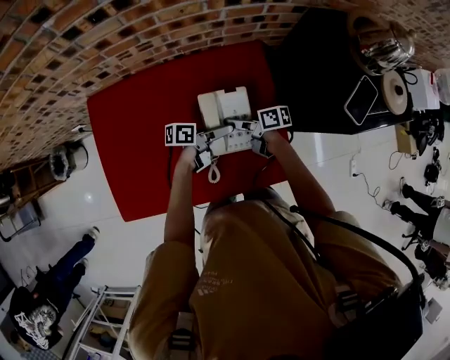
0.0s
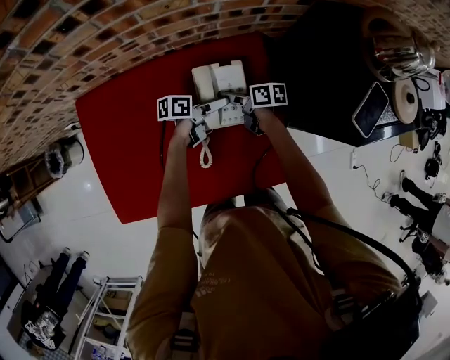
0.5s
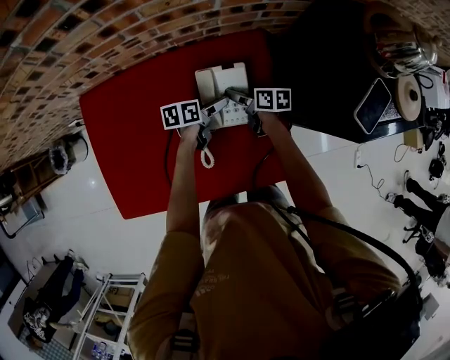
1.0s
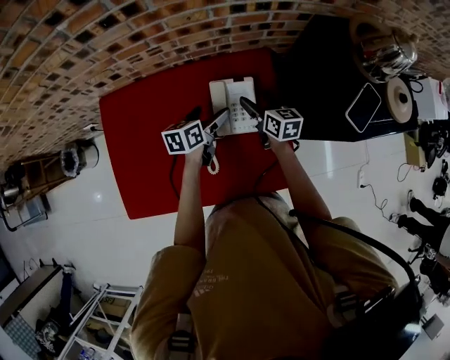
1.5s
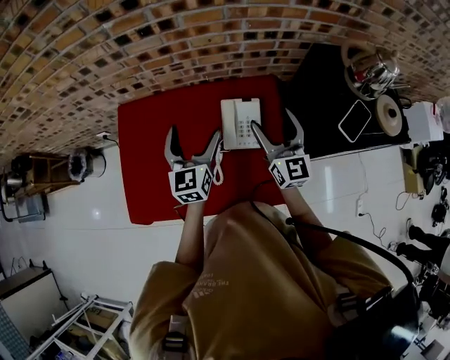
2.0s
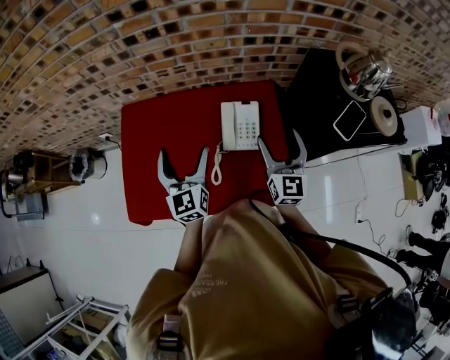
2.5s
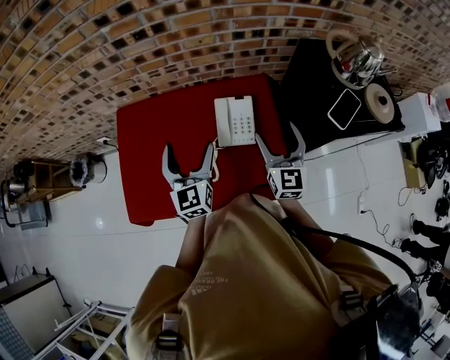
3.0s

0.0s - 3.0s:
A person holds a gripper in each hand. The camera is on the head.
0.0s - 1.5s: The left gripper ends up approximately 15 cm from where it was, and swivels some 40 degrees.
1.5s - 3.0s: The left gripper shifts some 25 cm upward, and changes its angle by roughly 60 degrees.

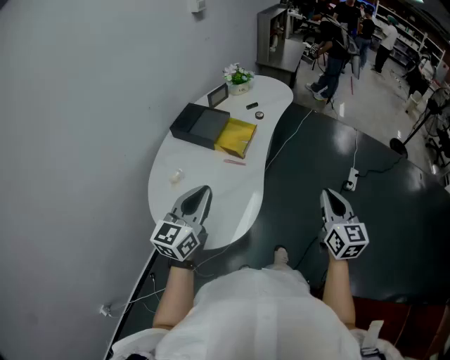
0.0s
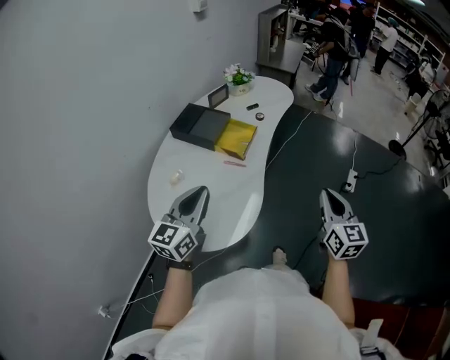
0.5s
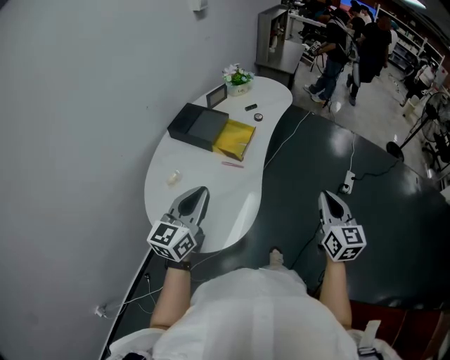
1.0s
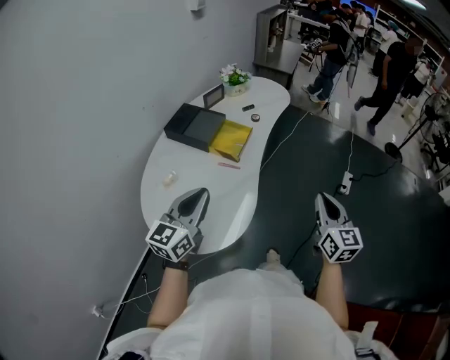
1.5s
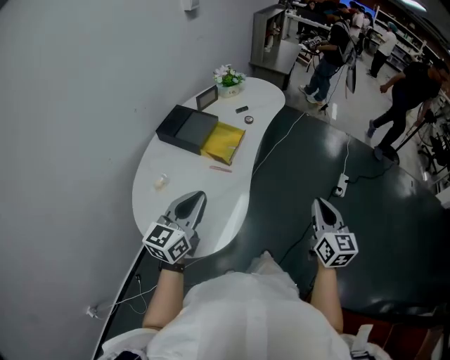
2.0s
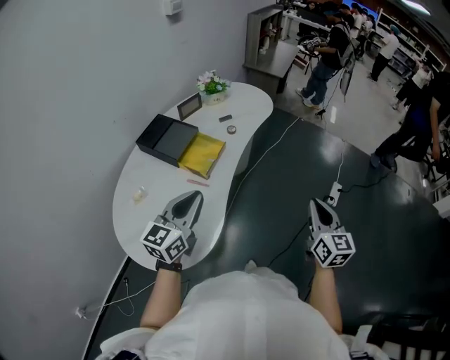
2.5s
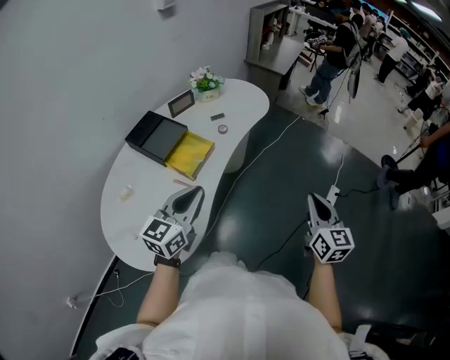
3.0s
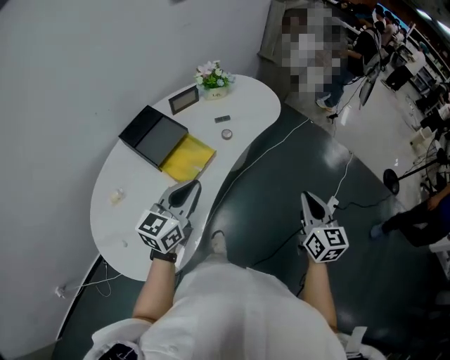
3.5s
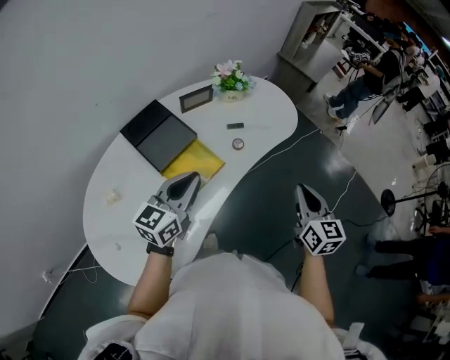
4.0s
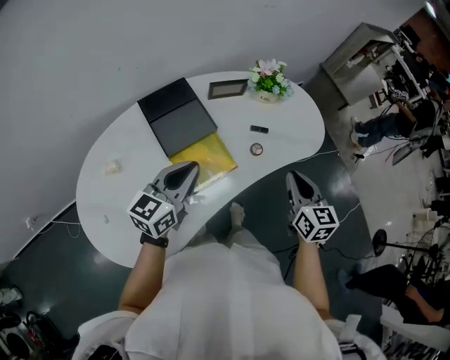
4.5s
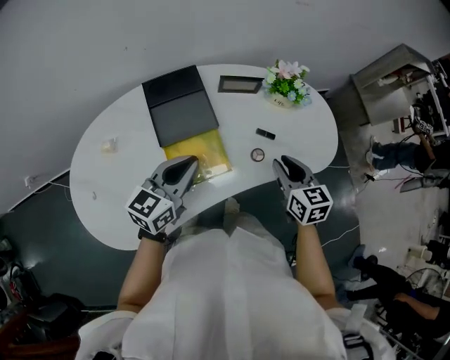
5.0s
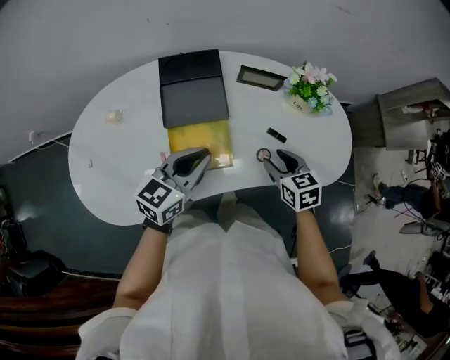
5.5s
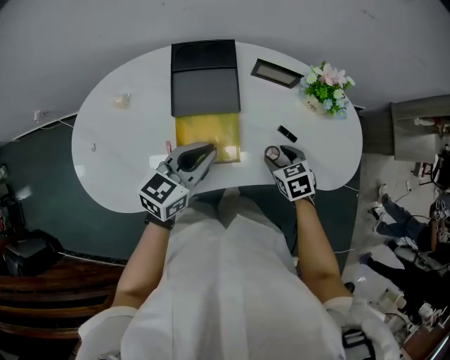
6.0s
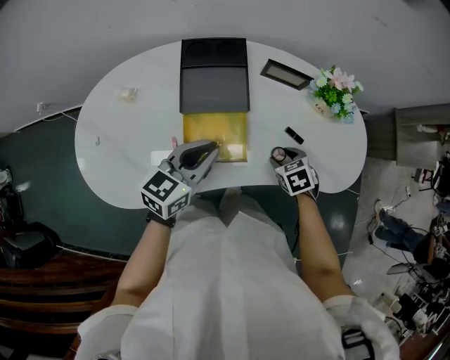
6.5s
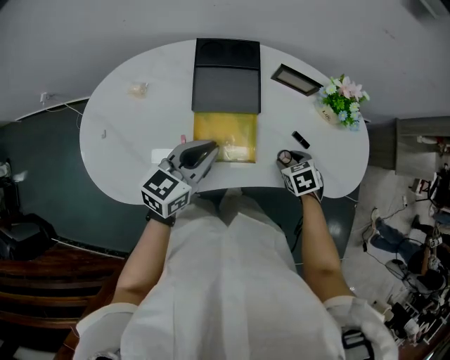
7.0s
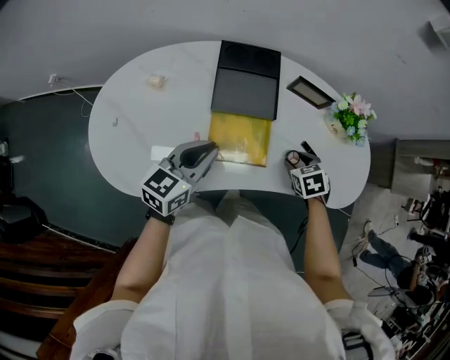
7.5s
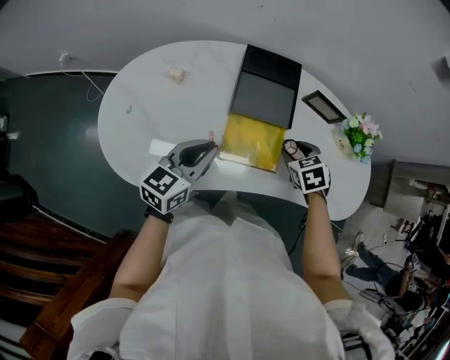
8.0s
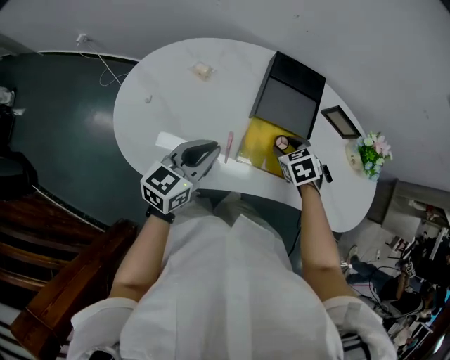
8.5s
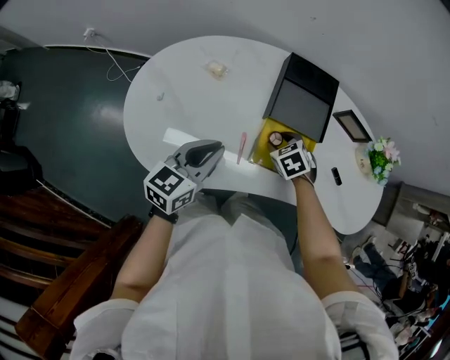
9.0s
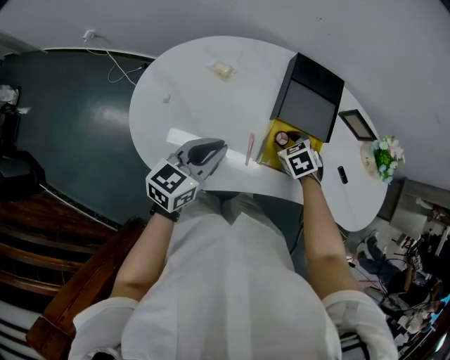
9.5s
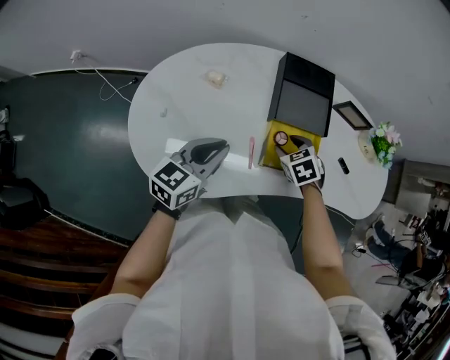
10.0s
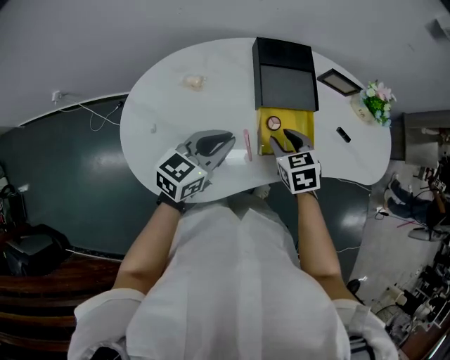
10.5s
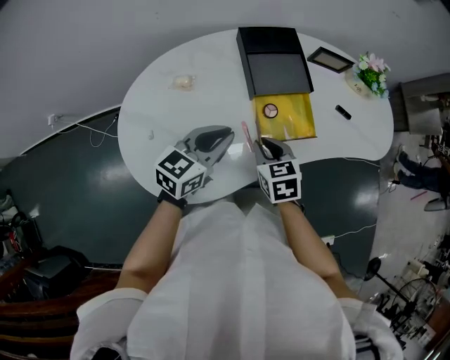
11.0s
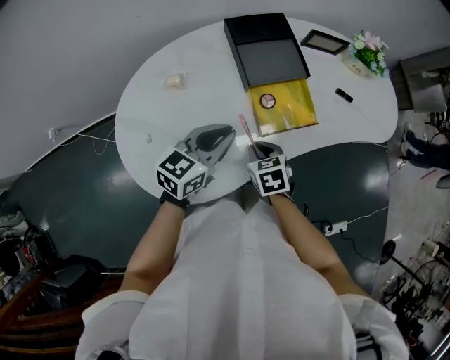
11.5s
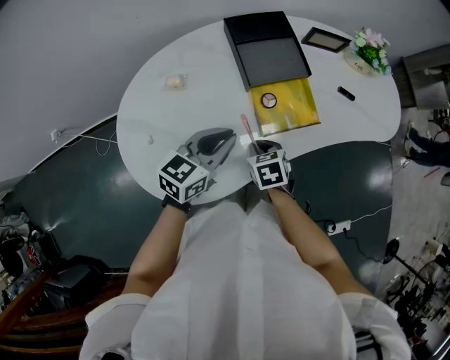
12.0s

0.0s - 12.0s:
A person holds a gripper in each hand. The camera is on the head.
0.0s - 2.0s: The left gripper ends up about 5 cm from where it was.
2.0s - 4.0s: Both grippers travel together forward, approximately 35 cm. The right gripper rotates approximately 20 degrees.
4.0s - 6.0s: The right gripper changes place by roughly 35 cm, tilts its fingers approximately 40 degrees downward, and opens its fingers, while the left gripper shifts roughly 10 cm downward, and swivels some 30 degrees.
6.0s - 8.0s: The left gripper moves to the left, roughly 15 cm. The right gripper goes approximately 10 cm to the left and upward.
8.0s - 10.0s: The grippers both shift to the left by approximately 15 cm.
10.0s - 12.0s: The right gripper moves backward, about 10 cm, turns by some 40 degrees, and closes up. Meanwhile the left gripper moves about 5 cm, and rotates some 30 degrees.

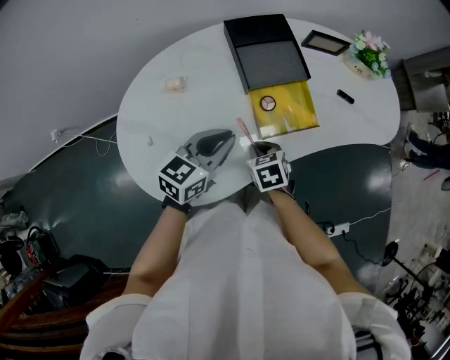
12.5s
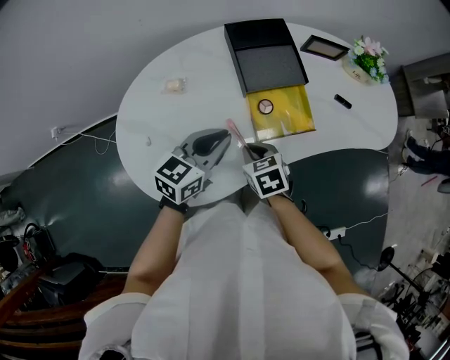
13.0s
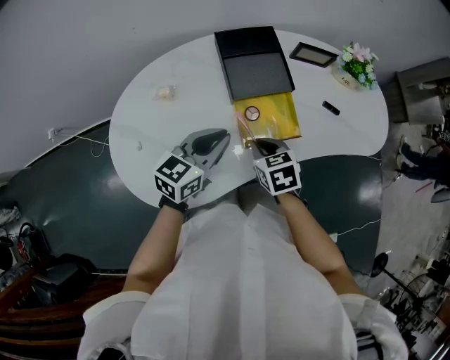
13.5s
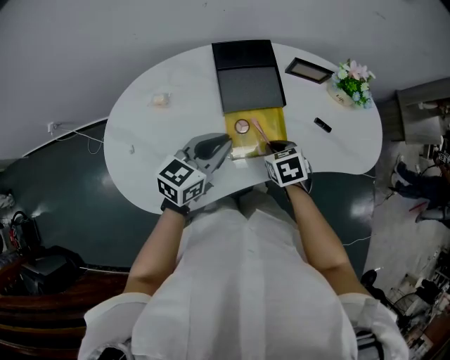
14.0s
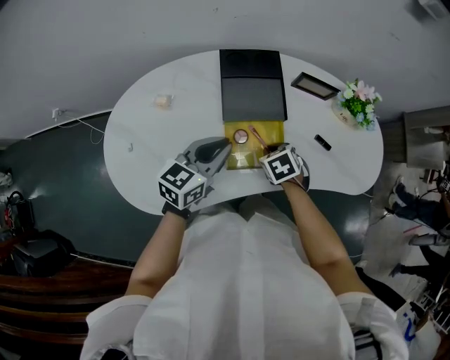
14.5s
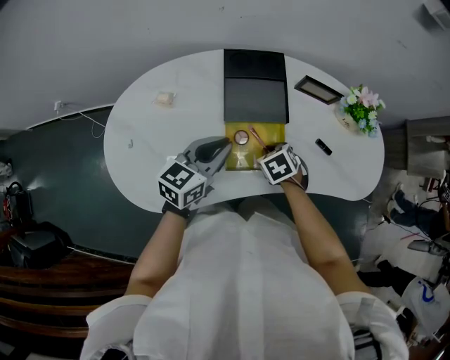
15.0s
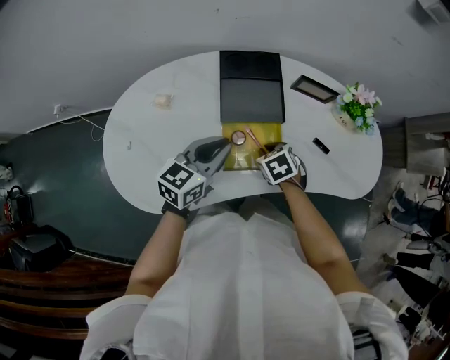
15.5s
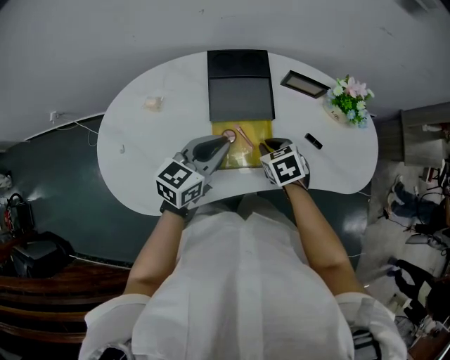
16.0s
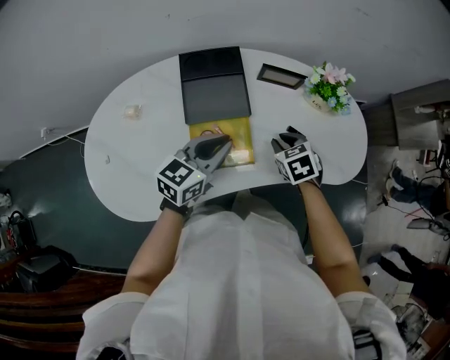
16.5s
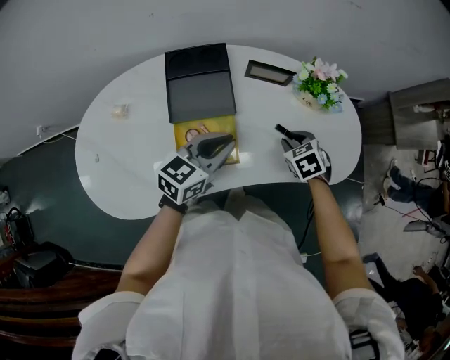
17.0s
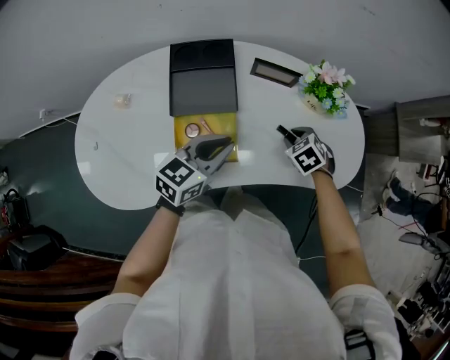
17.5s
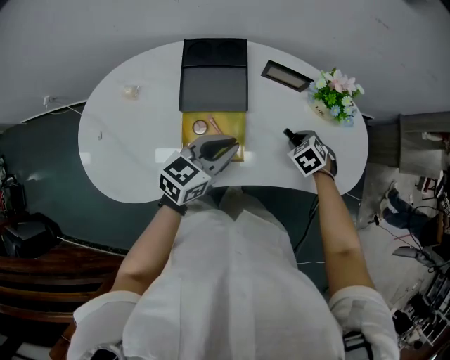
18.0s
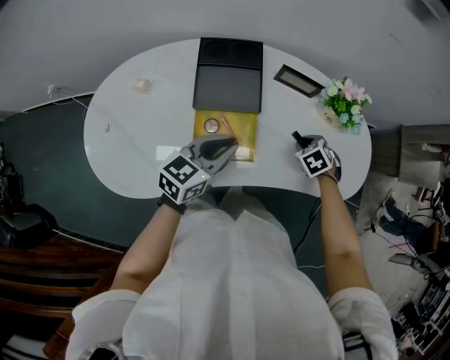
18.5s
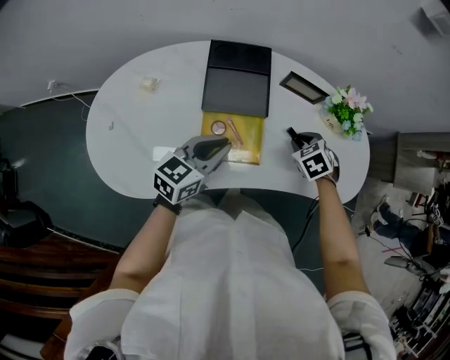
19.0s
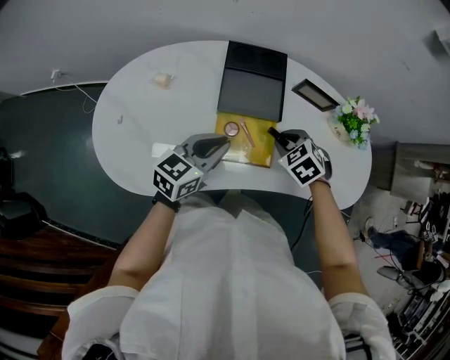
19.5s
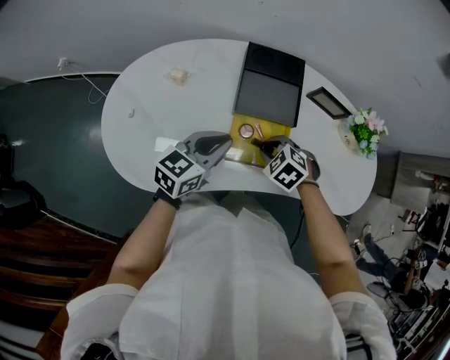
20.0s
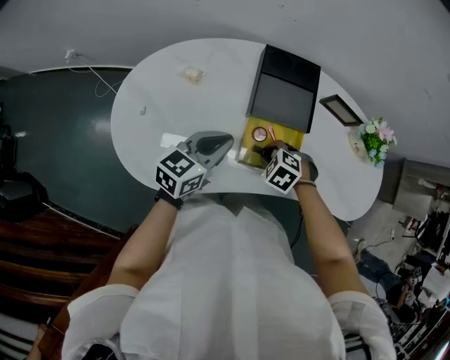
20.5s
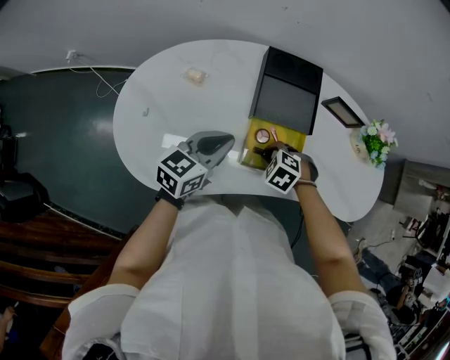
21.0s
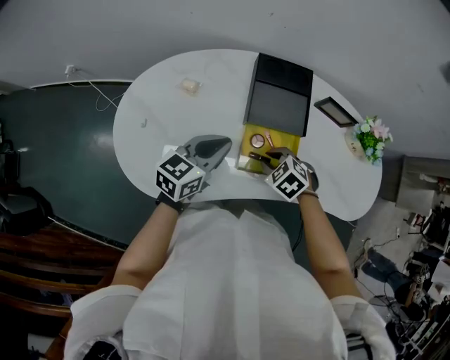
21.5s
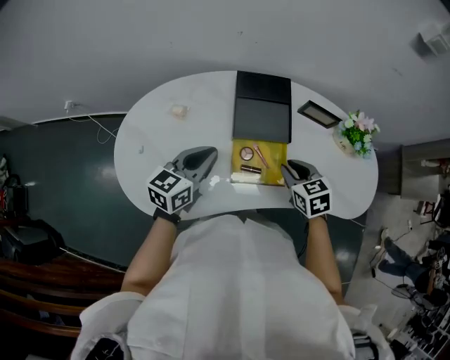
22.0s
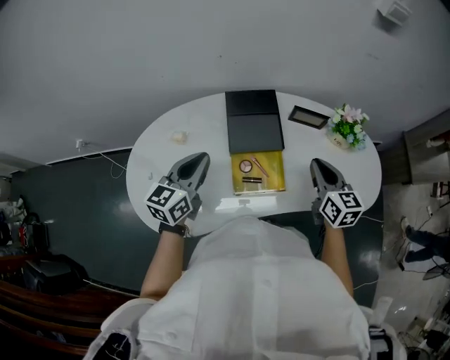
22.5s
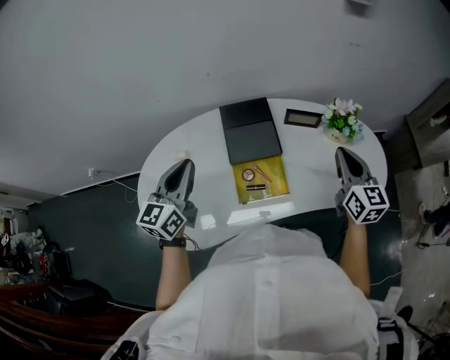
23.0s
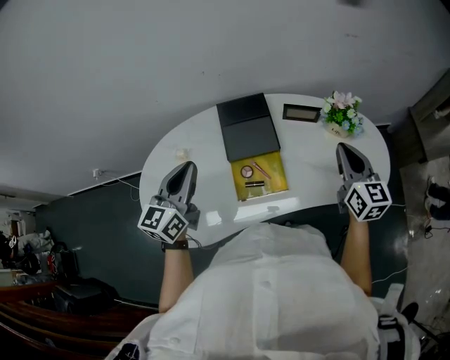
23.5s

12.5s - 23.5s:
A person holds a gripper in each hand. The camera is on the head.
12.5s - 14.5s: The left gripper travels to the right and forward by about 10 cm, while the right gripper travels to the right and forward by roughly 15 cm, and changes its angle by roughly 20 degrees.
14.5s - 16.0s: The right gripper shifts by some 5 cm.
16.0s - 18.0s: The right gripper is displaced to the right by approximately 20 cm, and changes its angle by some 20 degrees; the left gripper moves to the right, some 10 cm.
18.0s - 20.0s: The right gripper shifts by about 25 cm, and changes its angle by about 30 degrees. Meanwhile the left gripper ends up some 15 cm from where it was.
20.0s - 21.5s: There are only small adjustments of the grippers.
21.5s - 23.5s: The left gripper travels upward by some 15 cm, and swivels about 20 degrees. The right gripper moves to the right and upward, roughly 35 cm, and points its fingers approximately 60 degrees further upward.
